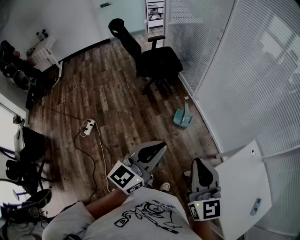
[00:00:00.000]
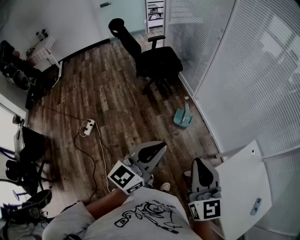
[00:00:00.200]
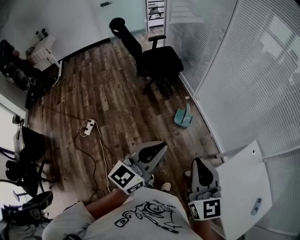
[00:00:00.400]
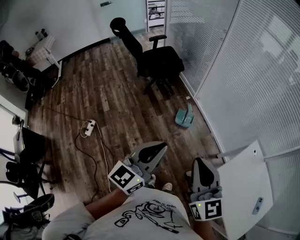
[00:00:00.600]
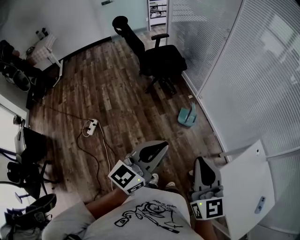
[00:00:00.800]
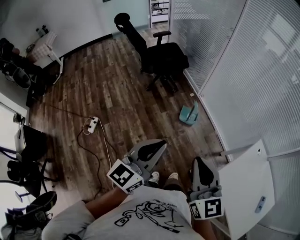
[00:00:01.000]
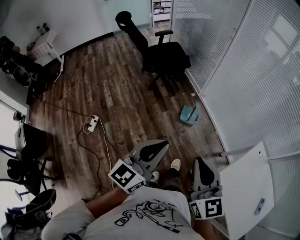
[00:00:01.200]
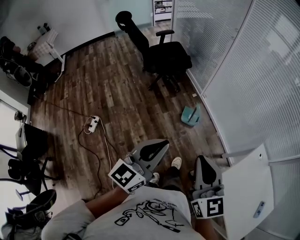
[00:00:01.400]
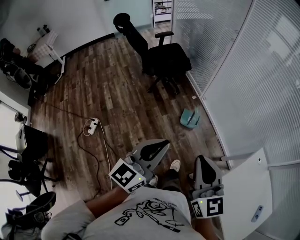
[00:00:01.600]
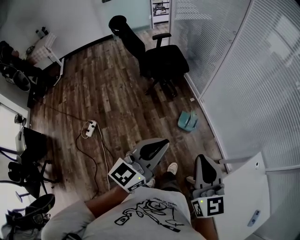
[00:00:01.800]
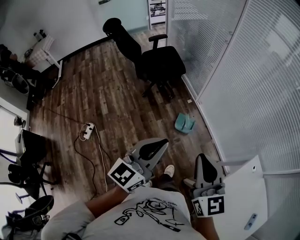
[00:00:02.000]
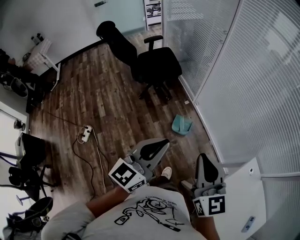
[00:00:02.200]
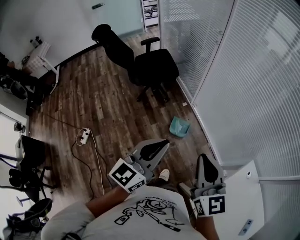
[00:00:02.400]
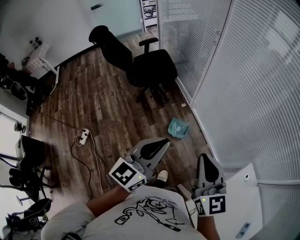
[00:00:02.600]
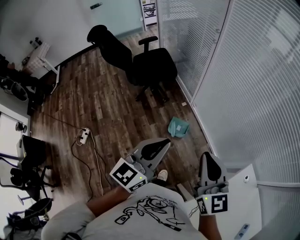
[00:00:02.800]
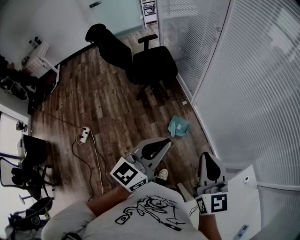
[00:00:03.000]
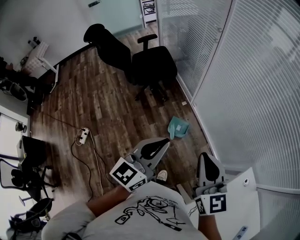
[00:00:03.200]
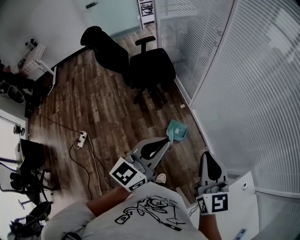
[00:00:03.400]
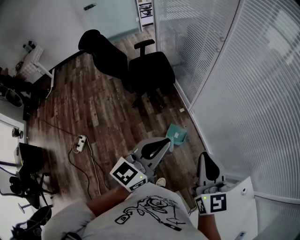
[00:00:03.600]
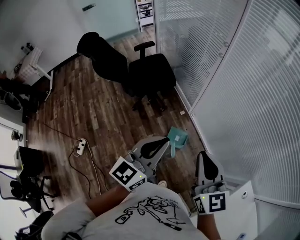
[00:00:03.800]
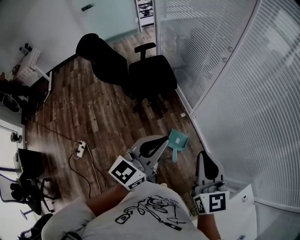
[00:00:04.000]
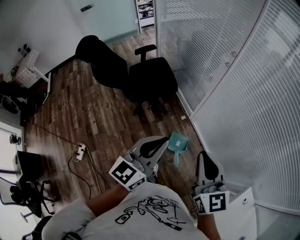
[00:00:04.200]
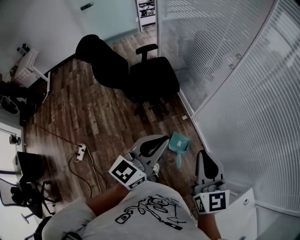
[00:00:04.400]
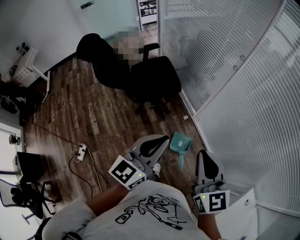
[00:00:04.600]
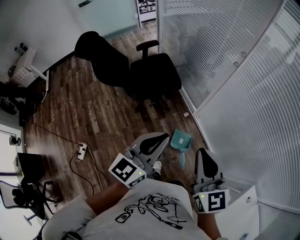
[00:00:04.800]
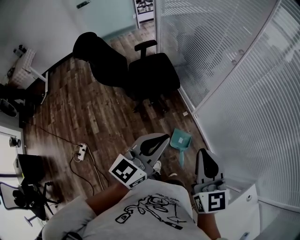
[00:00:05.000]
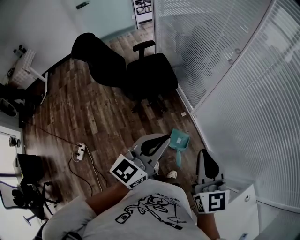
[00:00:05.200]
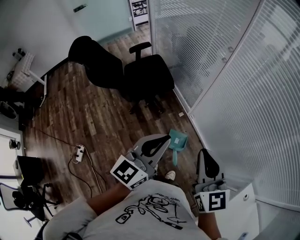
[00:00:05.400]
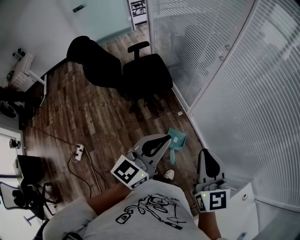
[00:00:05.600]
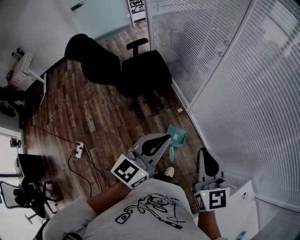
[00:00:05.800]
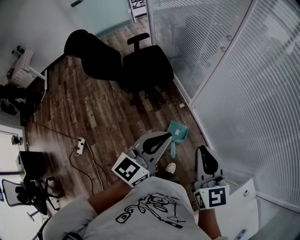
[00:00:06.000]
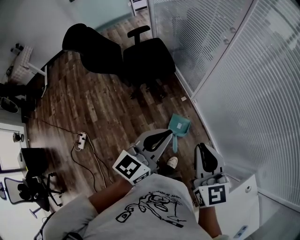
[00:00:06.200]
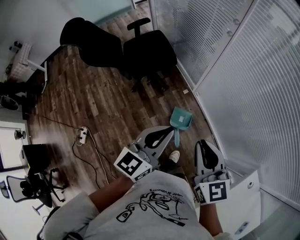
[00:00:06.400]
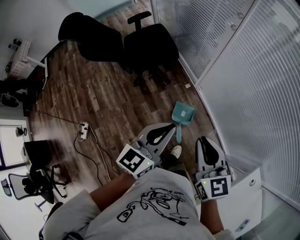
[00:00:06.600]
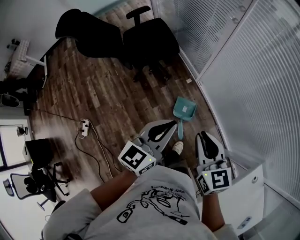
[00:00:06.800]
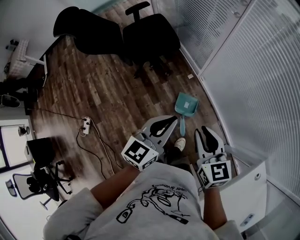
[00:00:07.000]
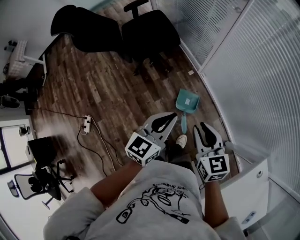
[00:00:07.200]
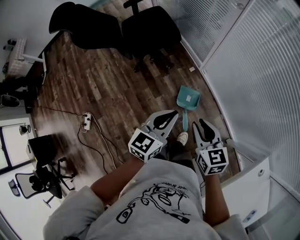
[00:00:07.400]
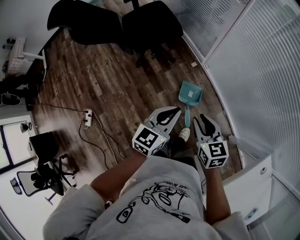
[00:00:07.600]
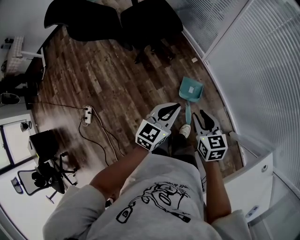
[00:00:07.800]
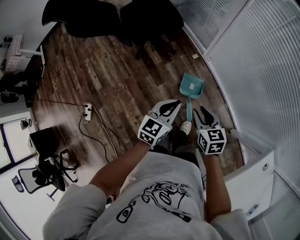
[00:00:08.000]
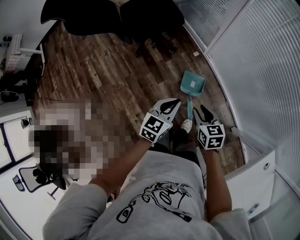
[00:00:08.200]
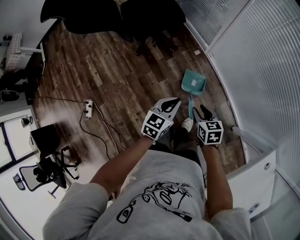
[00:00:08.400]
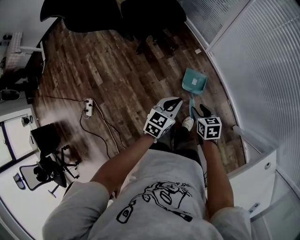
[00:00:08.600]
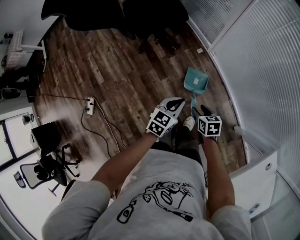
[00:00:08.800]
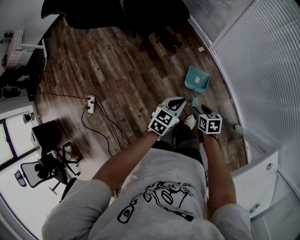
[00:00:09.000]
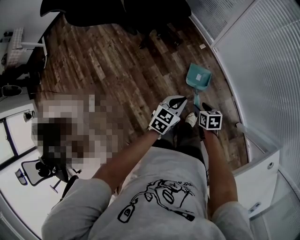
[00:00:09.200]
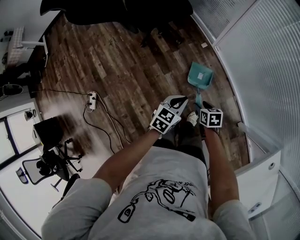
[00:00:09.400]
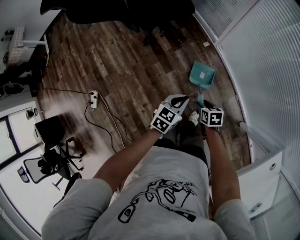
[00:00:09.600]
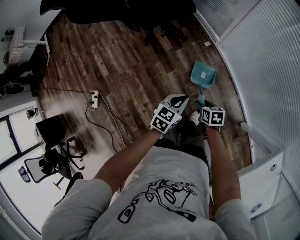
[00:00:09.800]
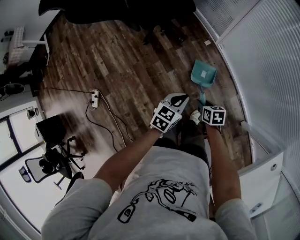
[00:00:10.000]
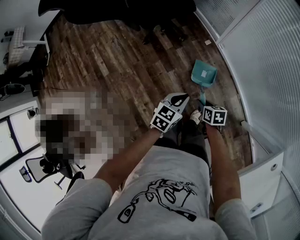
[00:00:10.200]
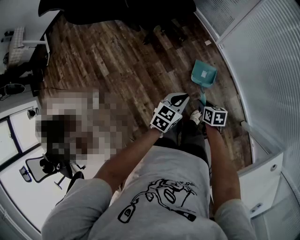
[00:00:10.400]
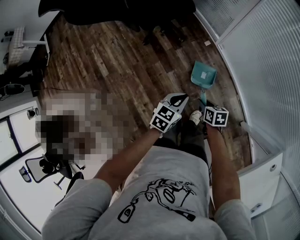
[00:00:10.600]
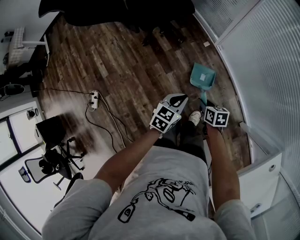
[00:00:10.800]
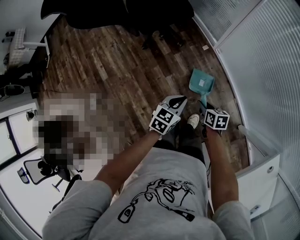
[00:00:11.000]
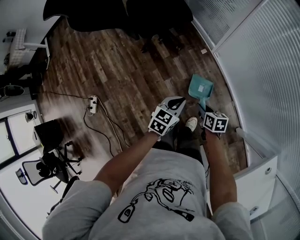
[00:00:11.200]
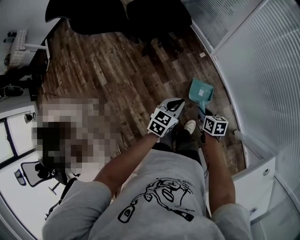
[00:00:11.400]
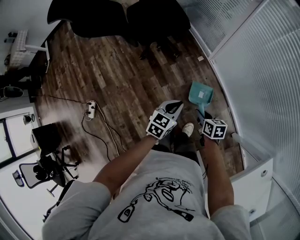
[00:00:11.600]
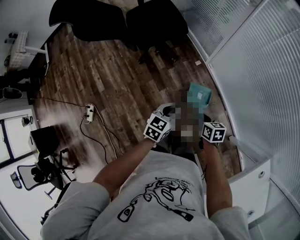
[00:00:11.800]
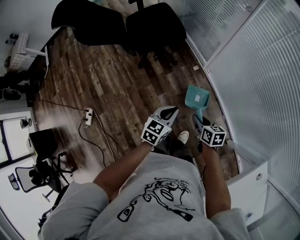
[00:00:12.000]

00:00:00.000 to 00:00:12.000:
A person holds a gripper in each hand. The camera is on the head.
00:00:00.000 to 00:00:01.600: Both grippers travel together forward and to the left, some 10 cm.
00:00:01.600 to 00:00:03.000: The two grippers go roughly 30 cm forward and to the right.
00:00:03.000 to 00:00:04.400: Both grippers move forward and to the left, some 25 cm.
00:00:04.400 to 00:00:06.000: The two grippers go approximately 5 cm to the right.
00:00:06.000 to 00:00:07.600: The grippers both shift downward by about 25 cm. The right gripper rotates about 30 degrees.
00:00:07.600 to 00:00:09.000: Both grippers move downward, roughly 20 cm. The right gripper rotates some 30 degrees, and opens its fingers.
00:00:09.000 to 00:00:10.400: The right gripper closes.
00:00:10.400 to 00:00:12.000: The right gripper is displaced upward by about 15 cm. The left gripper is displaced upward by approximately 10 cm.

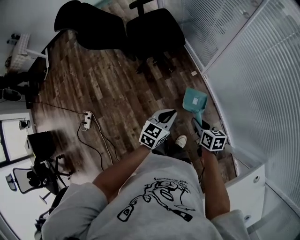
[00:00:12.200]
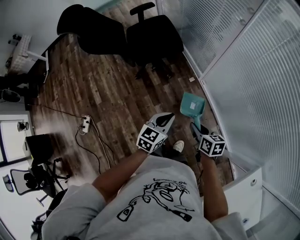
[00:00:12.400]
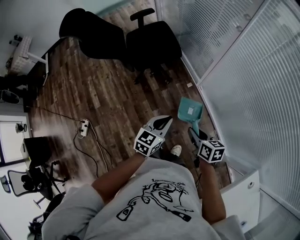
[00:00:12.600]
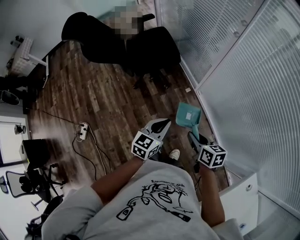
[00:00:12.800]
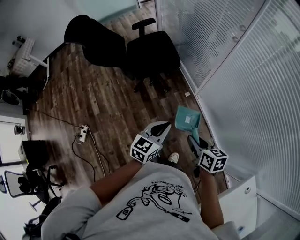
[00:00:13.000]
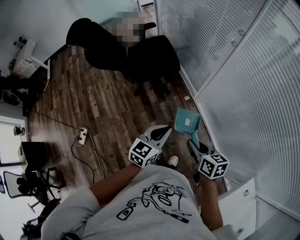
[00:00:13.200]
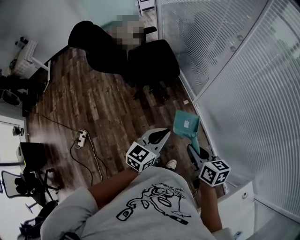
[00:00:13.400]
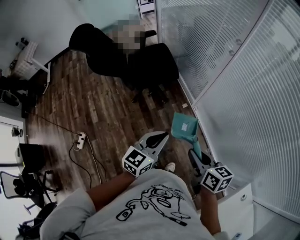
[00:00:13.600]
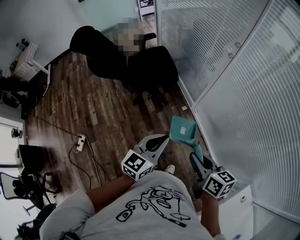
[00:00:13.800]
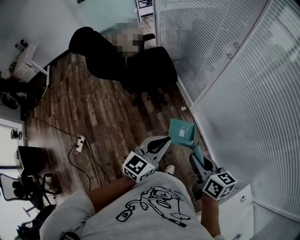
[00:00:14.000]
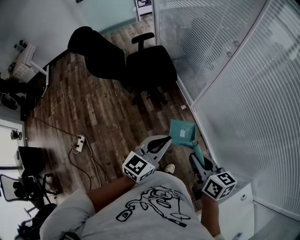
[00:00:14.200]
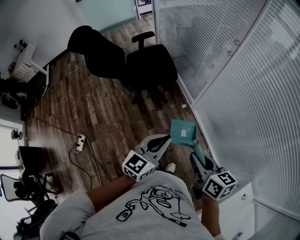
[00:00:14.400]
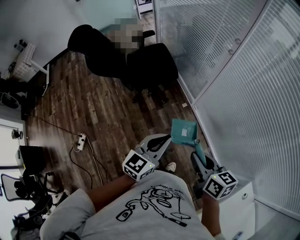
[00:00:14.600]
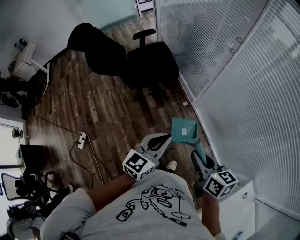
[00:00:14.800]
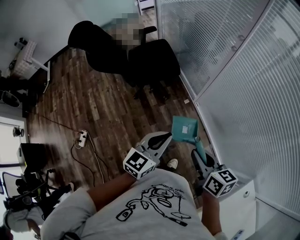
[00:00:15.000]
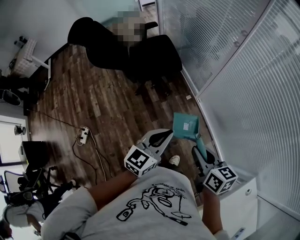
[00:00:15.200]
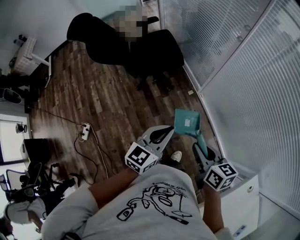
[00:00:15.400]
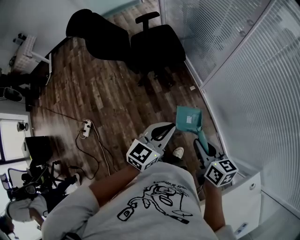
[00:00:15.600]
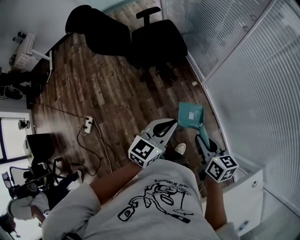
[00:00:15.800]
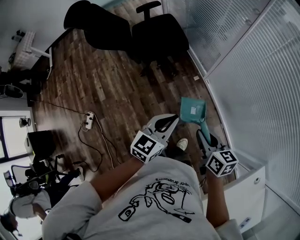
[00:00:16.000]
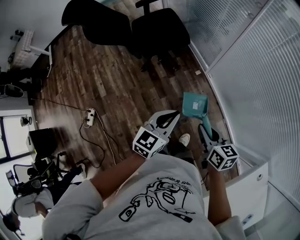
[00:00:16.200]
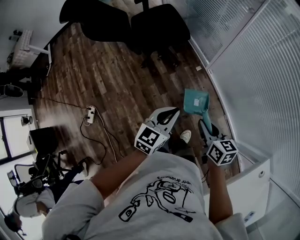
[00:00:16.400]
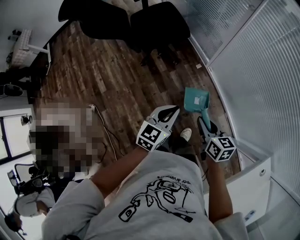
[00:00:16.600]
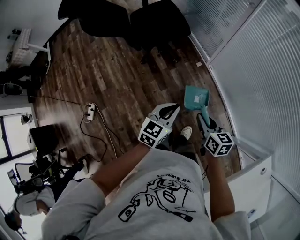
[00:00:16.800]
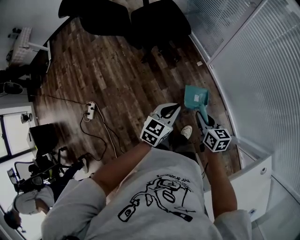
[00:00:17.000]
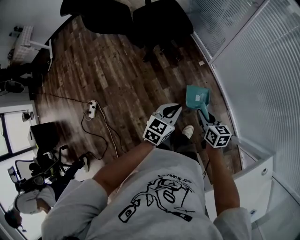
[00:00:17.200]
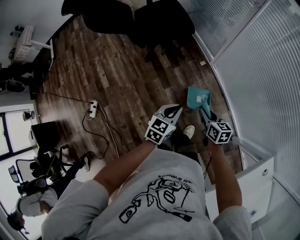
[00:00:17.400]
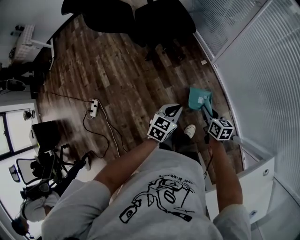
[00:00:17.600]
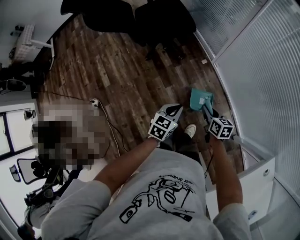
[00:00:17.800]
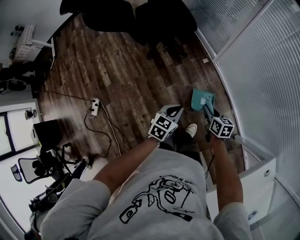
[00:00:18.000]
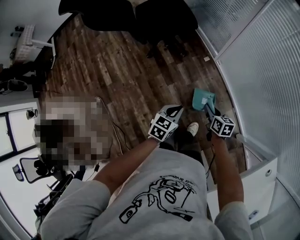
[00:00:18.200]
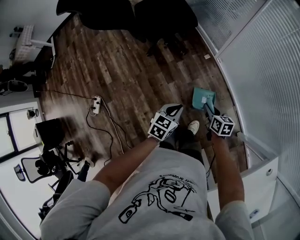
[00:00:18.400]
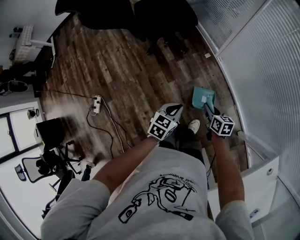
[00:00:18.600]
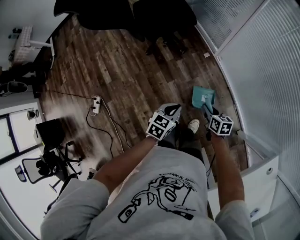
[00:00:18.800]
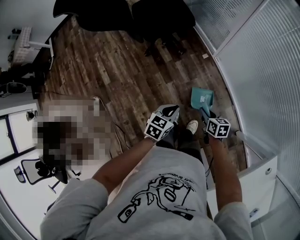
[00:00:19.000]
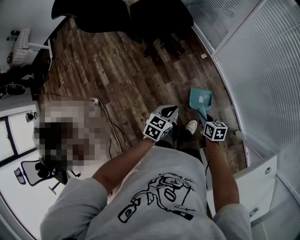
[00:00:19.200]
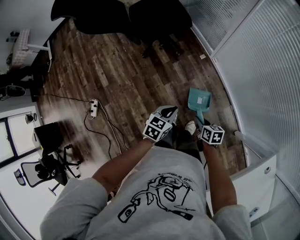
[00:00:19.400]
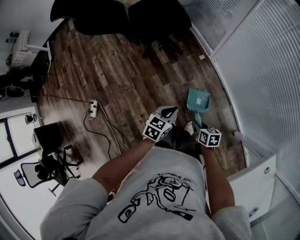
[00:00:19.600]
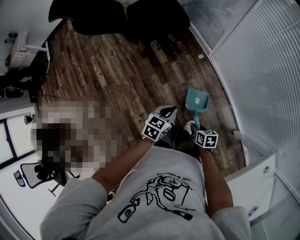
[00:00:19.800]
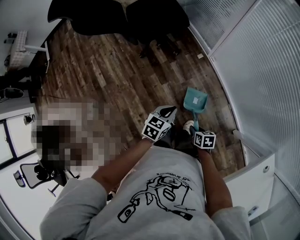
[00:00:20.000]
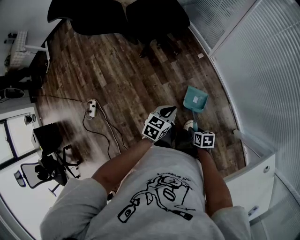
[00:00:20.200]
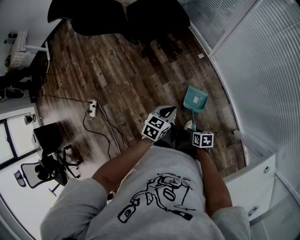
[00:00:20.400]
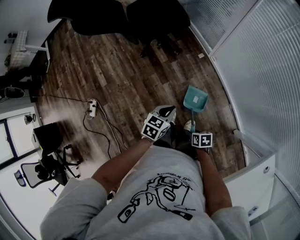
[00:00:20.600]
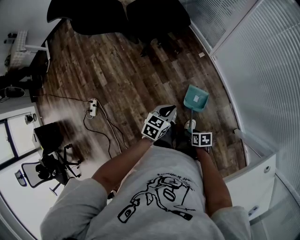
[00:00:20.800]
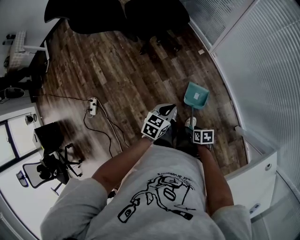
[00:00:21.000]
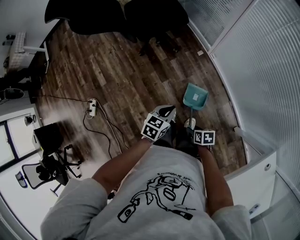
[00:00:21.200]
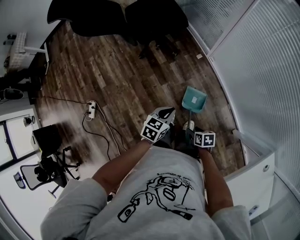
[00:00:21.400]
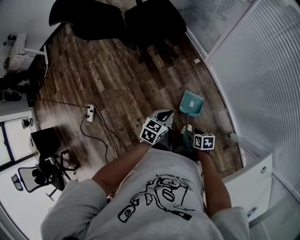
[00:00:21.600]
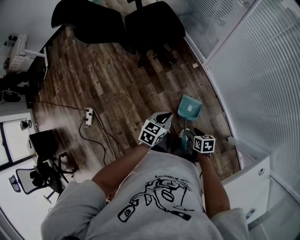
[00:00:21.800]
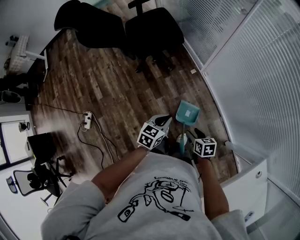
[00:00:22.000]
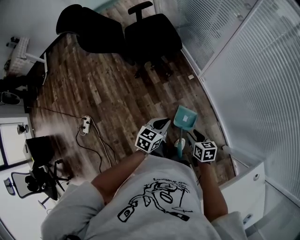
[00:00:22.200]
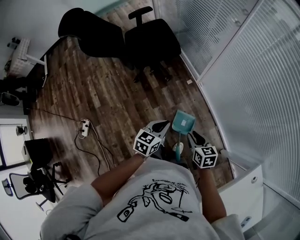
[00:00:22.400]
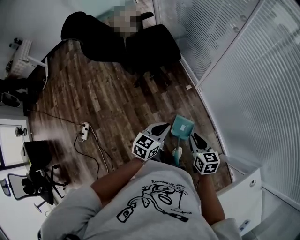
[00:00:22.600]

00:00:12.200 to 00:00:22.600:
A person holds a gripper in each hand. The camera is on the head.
00:00:12.200 to 00:00:13.600: The grippers both shift upward by some 20 cm.
00:00:13.600 to 00:00:15.200: The grippers make only small movements.
00:00:15.200 to 00:00:16.600: Both grippers move downward, some 15 cm.
00:00:16.600 to 00:00:18.200: Both grippers travel together downward, approximately 15 cm.
00:00:18.200 to 00:00:19.600: The right gripper is displaced backward by approximately 10 cm.
00:00:19.600 to 00:00:21.200: The right gripper travels backward by about 5 cm, and opens its fingers.
00:00:21.200 to 00:00:22.600: The left gripper heads upward, covering approximately 15 cm, while the right gripper is displaced upward and forward by roughly 30 cm, rotates some 40 degrees, and closes.

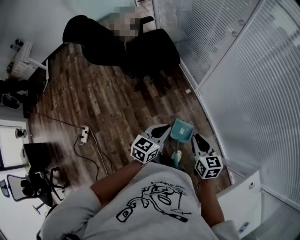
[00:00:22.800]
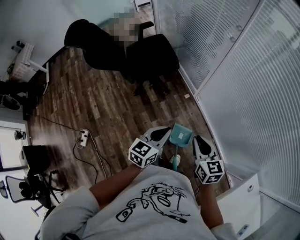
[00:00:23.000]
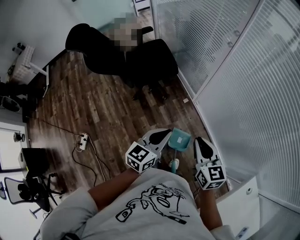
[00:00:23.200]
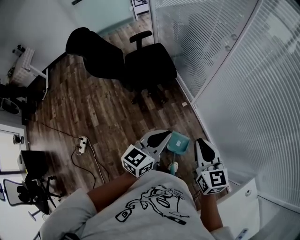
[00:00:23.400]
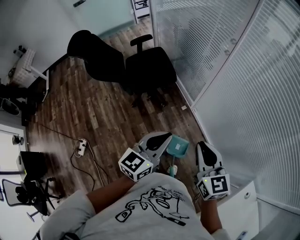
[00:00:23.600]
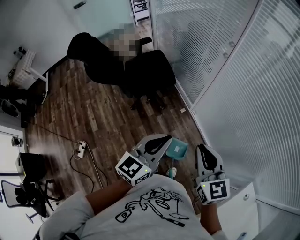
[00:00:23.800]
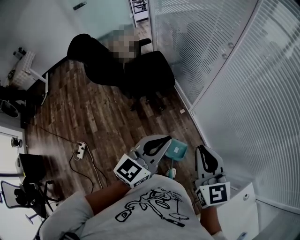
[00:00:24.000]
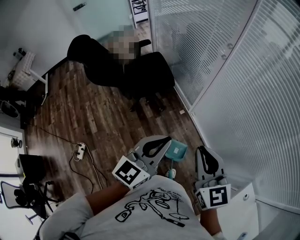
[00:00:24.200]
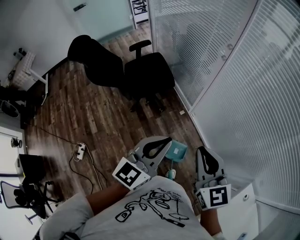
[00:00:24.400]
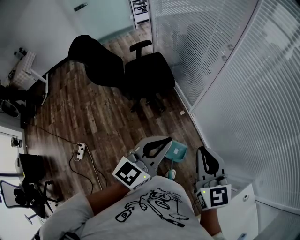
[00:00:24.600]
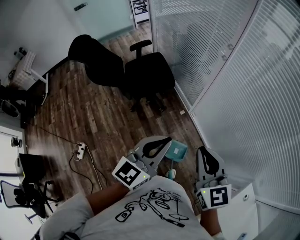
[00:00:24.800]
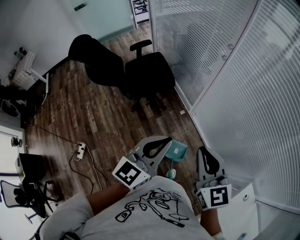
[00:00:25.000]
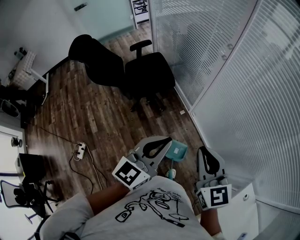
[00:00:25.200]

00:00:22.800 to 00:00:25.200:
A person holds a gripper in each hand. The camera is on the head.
00:00:22.800 to 00:00:24.000: The two grippers go some 25 cm upward. The left gripper swivels some 20 degrees; the right gripper rotates about 30 degrees.
00:00:24.000 to 00:00:25.200: The grippers stay close to where they were, moving slightly.
